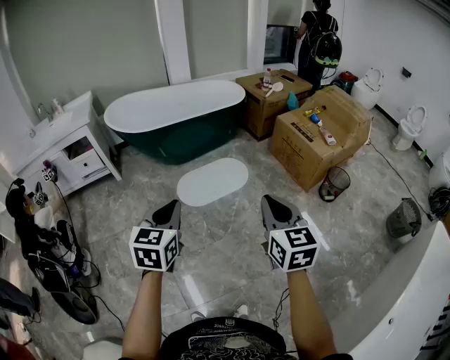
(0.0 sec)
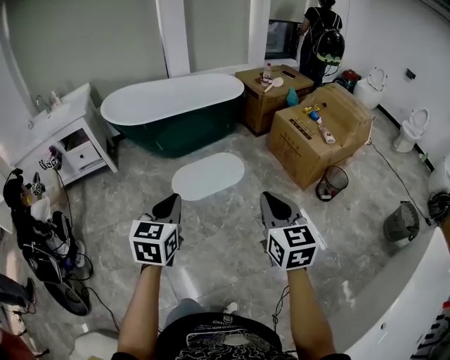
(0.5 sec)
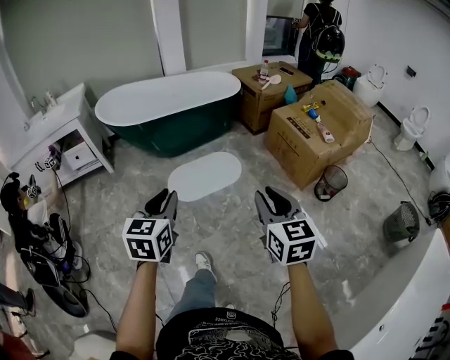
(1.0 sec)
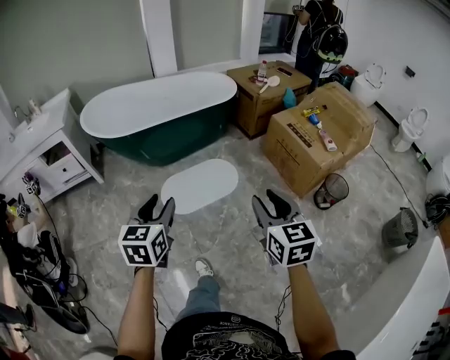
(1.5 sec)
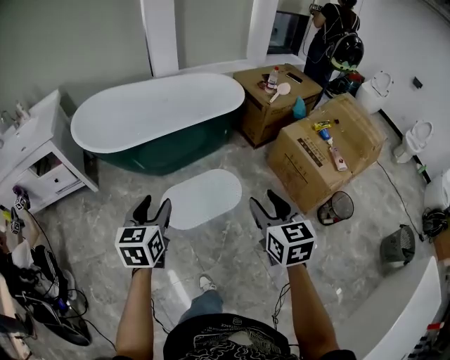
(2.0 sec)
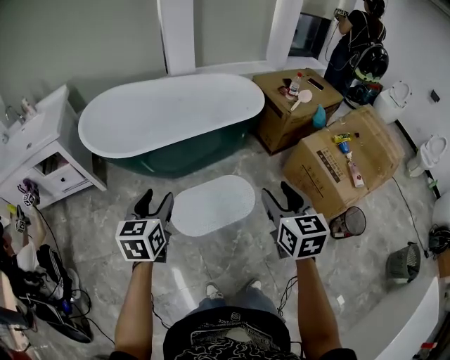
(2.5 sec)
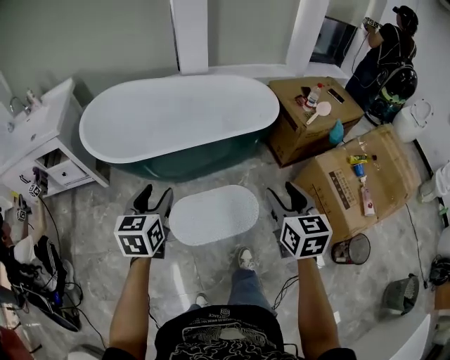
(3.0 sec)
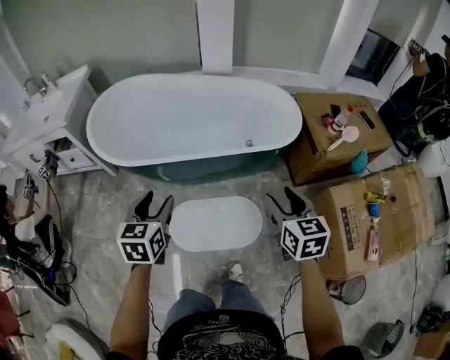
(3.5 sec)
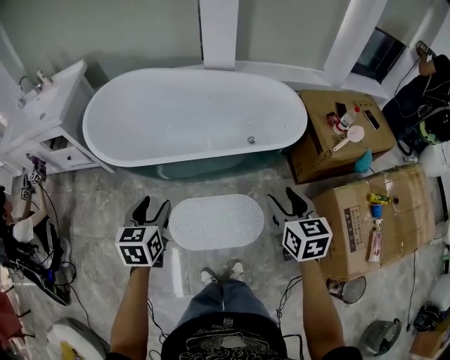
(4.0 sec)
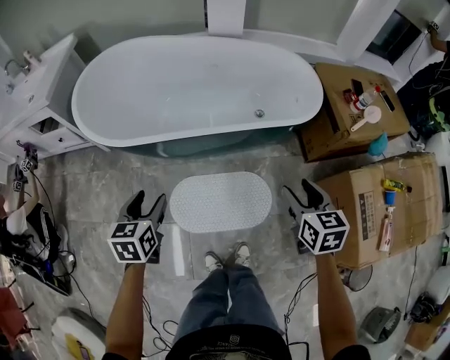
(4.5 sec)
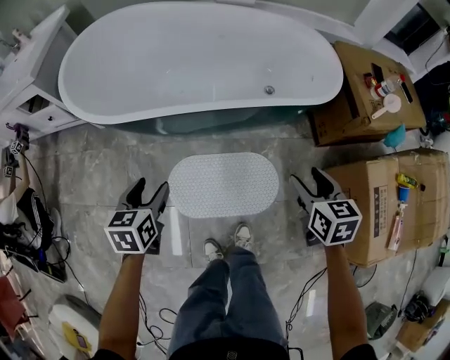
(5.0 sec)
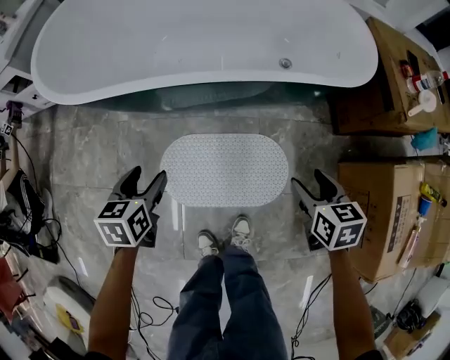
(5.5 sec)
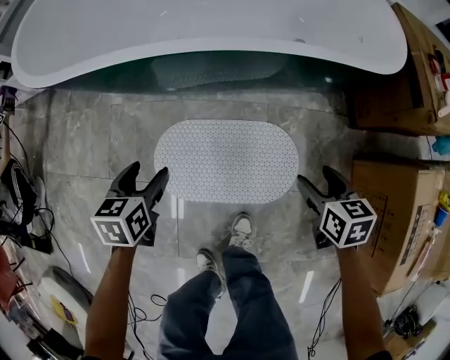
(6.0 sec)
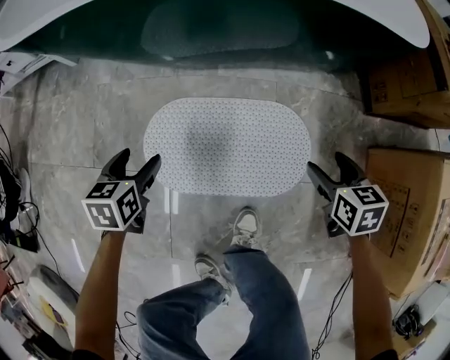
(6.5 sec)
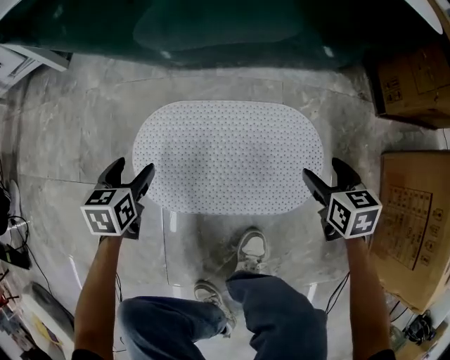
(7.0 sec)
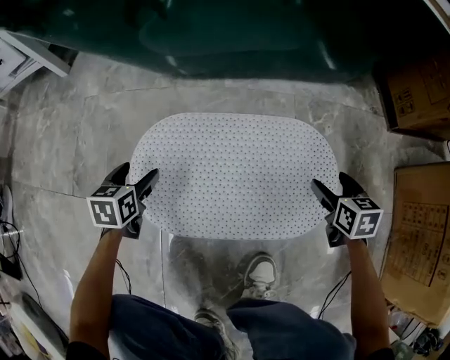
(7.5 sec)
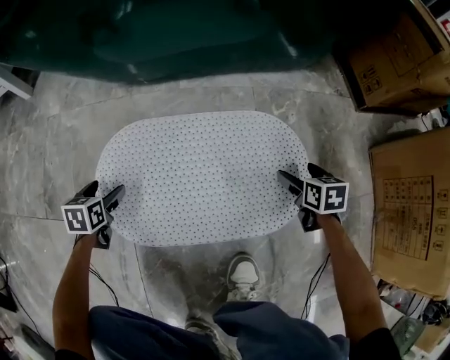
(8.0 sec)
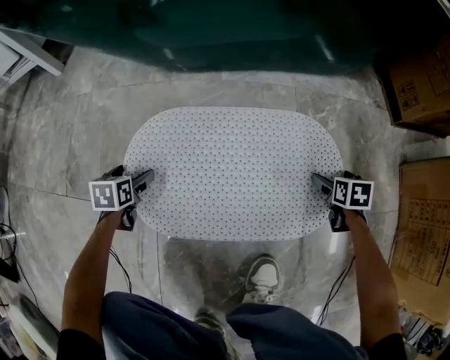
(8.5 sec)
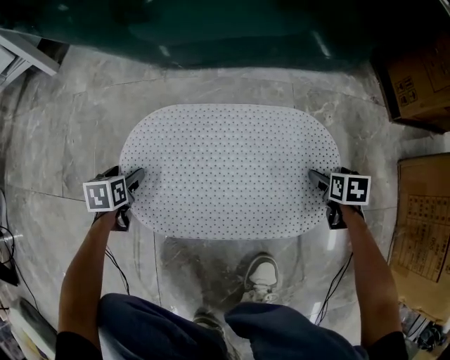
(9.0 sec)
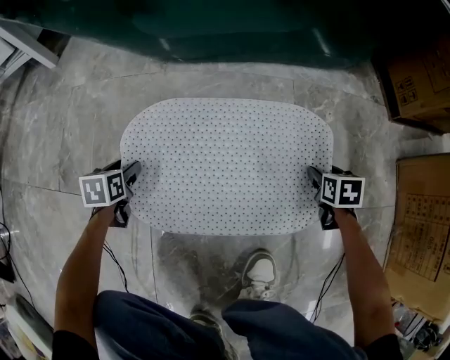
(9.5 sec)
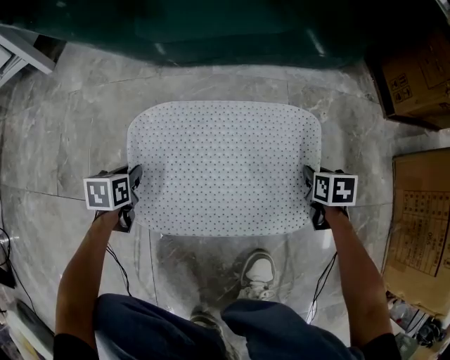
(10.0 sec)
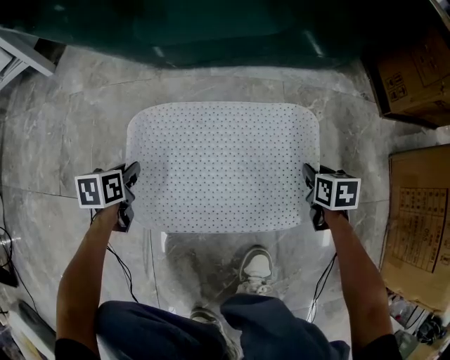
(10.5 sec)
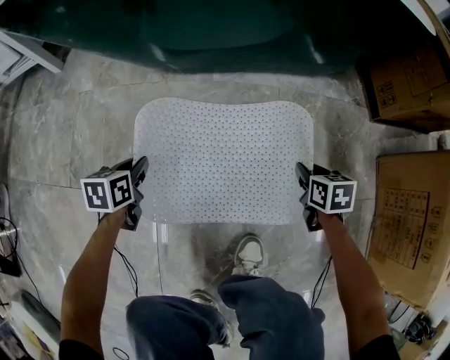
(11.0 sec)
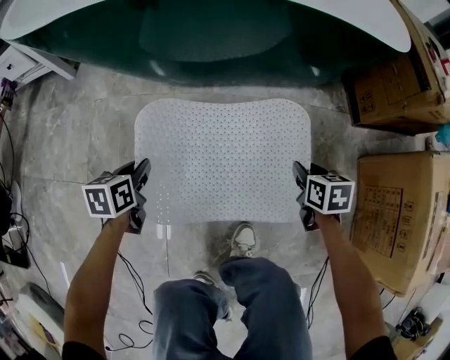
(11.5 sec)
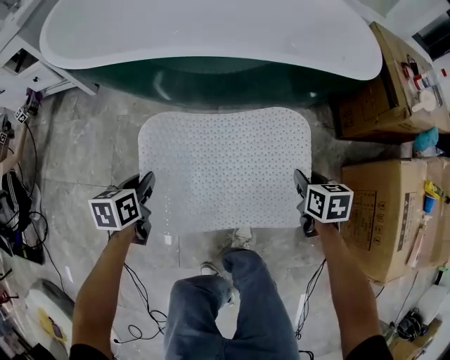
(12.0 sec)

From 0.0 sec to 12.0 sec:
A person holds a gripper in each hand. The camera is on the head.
From 0.0 sec to 2.0 sec: The two grippers go approximately 35 cm forward. The left gripper opens. Meanwhile the right gripper opens.
From 2.0 sec to 4.0 sec: Both grippers travel together forward, about 35 cm. The right gripper turns by some 20 degrees, while the left gripper changes its angle by some 20 degrees.
From 4.0 sec to 6.0 sec: Both grippers travel together downward, approximately 40 cm. The left gripper swivels approximately 20 degrees. The right gripper rotates some 30 degrees.
From 6.0 sec to 8.0 sec: The two grippers go approximately 40 cm downward.
From 8.0 sec to 10.0 sec: The right gripper closes up, while the left gripper closes up.
From 10.0 sec to 12.0 sec: Both grippers travel together upward, approximately 40 cm.

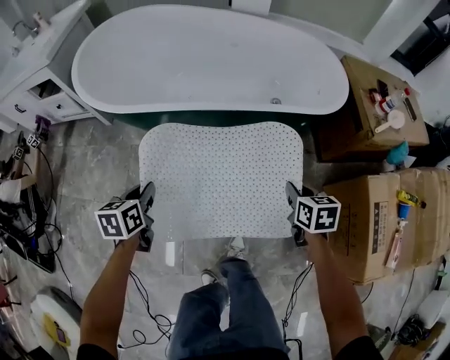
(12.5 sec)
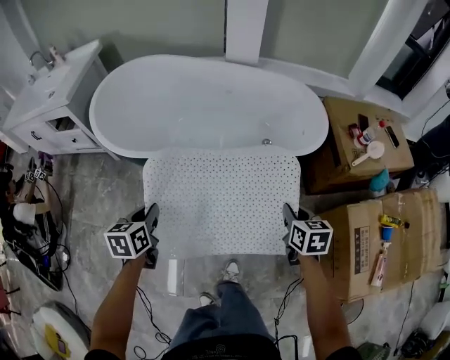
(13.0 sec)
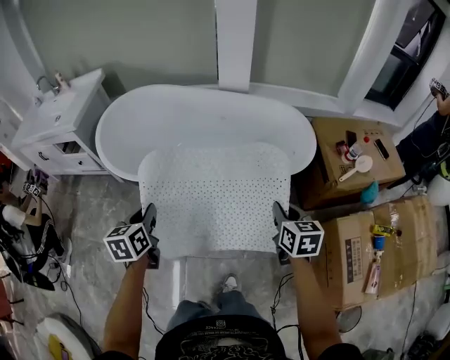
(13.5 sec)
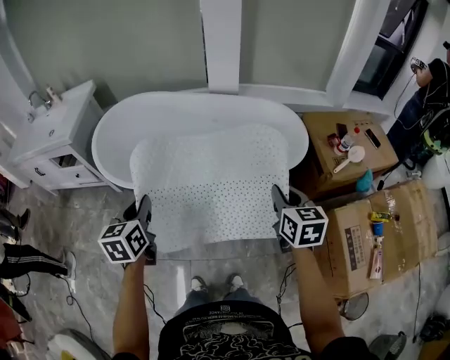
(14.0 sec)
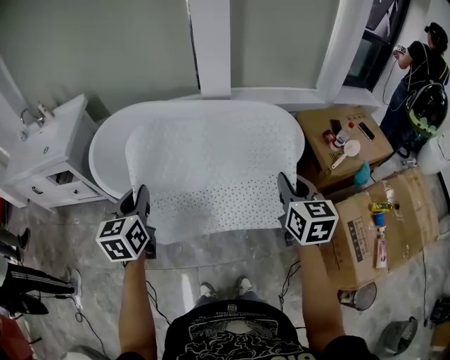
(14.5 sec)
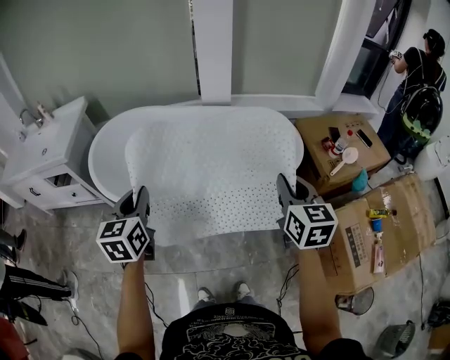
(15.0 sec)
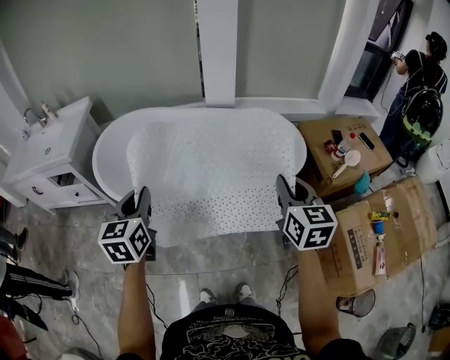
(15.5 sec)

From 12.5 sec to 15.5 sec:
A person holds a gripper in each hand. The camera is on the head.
From 12.5 sec to 14.0 sec: Both grippers travel together upward, roughly 30 cm. The left gripper rotates some 20 degrees, while the right gripper swivels roughly 20 degrees.
From 14.0 sec to 15.5 sec: The grippers both shift upward by roughly 10 cm.

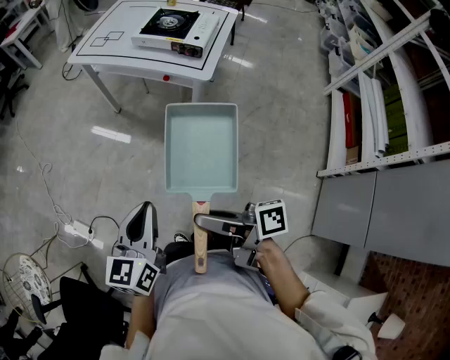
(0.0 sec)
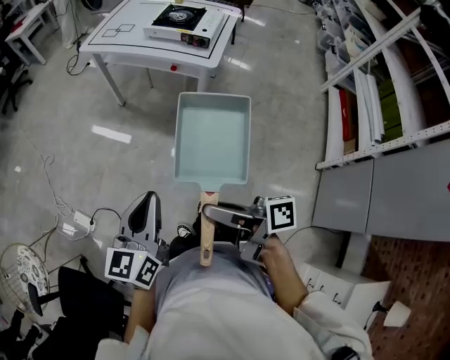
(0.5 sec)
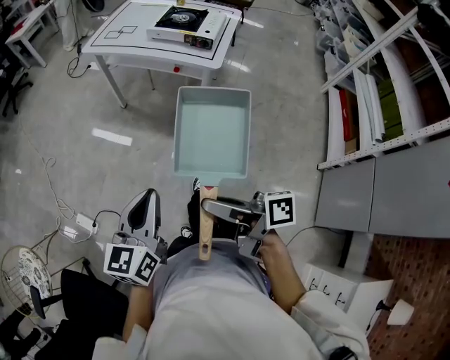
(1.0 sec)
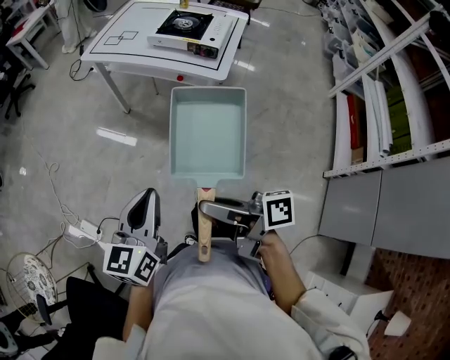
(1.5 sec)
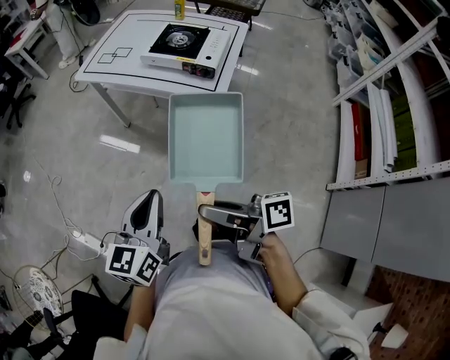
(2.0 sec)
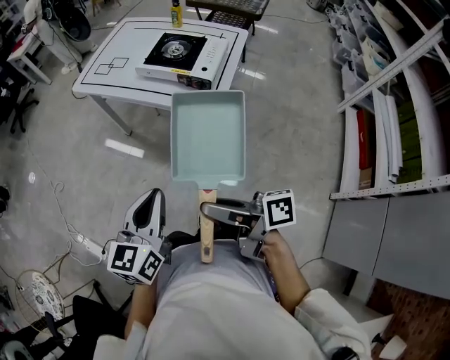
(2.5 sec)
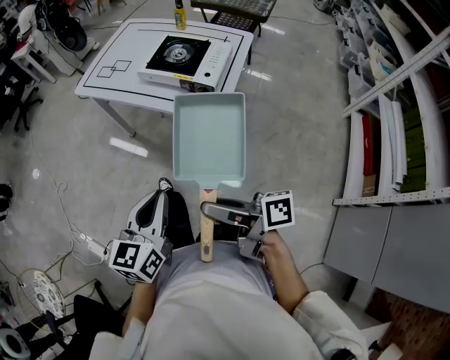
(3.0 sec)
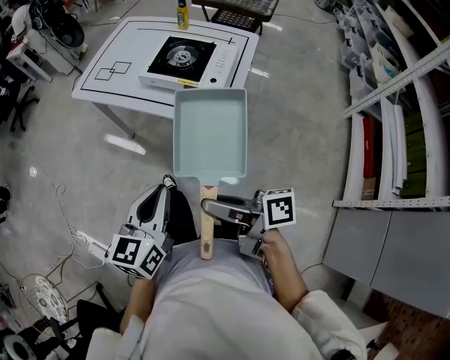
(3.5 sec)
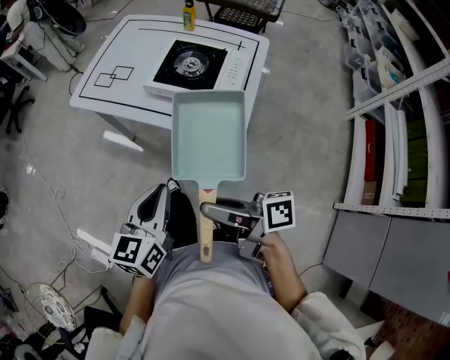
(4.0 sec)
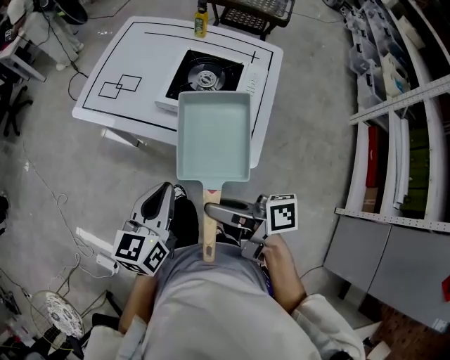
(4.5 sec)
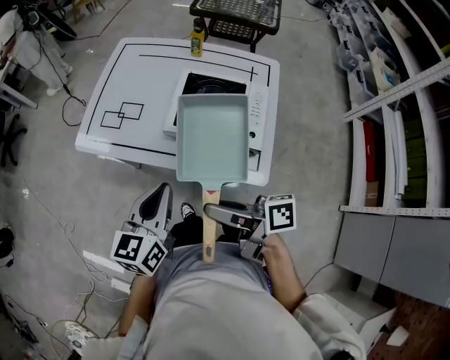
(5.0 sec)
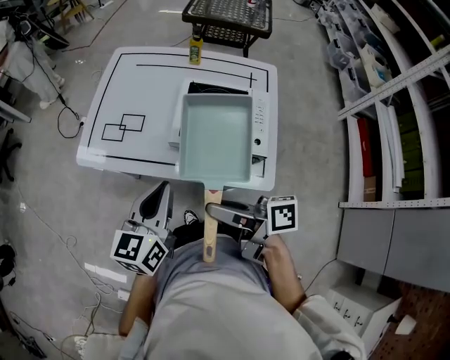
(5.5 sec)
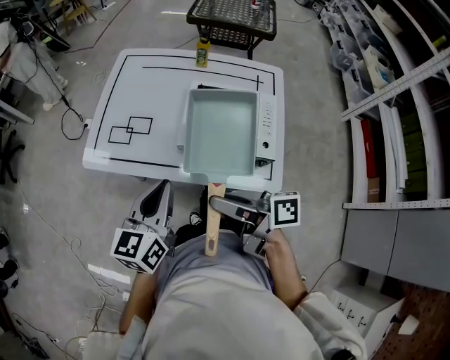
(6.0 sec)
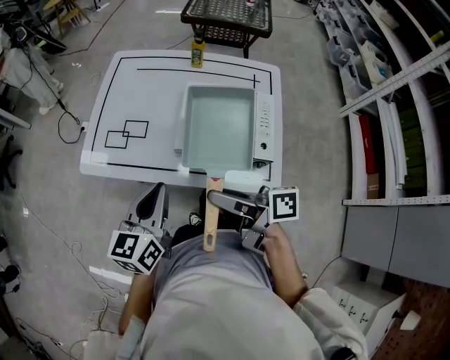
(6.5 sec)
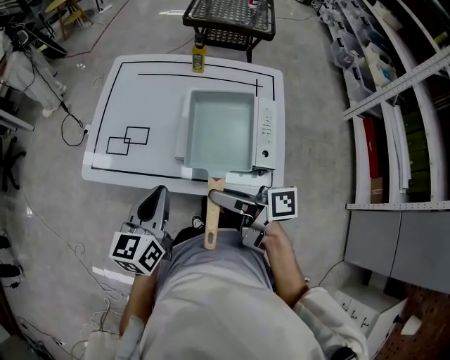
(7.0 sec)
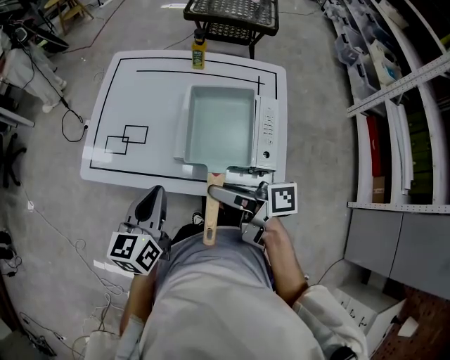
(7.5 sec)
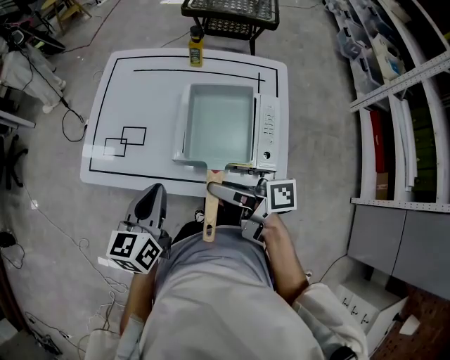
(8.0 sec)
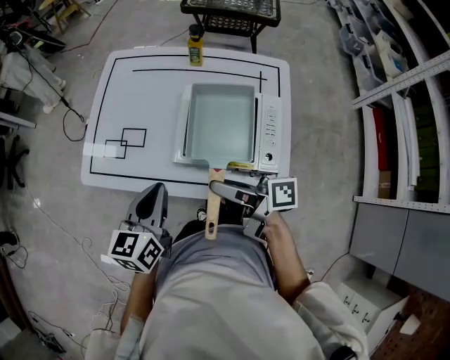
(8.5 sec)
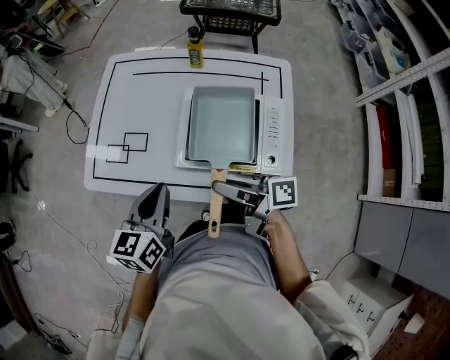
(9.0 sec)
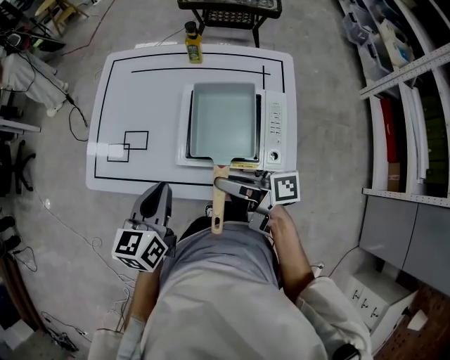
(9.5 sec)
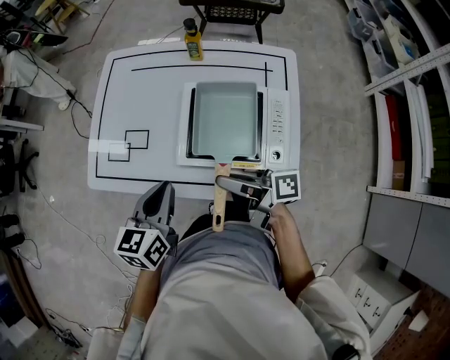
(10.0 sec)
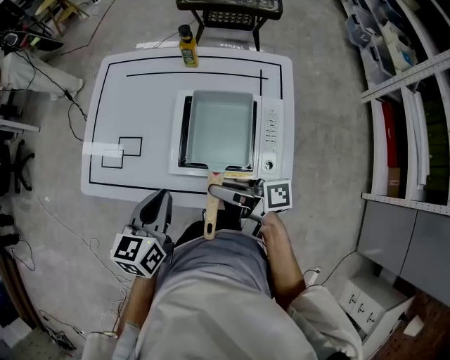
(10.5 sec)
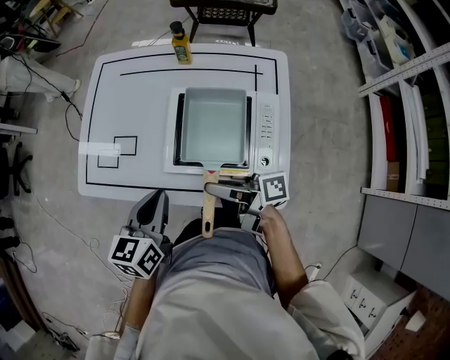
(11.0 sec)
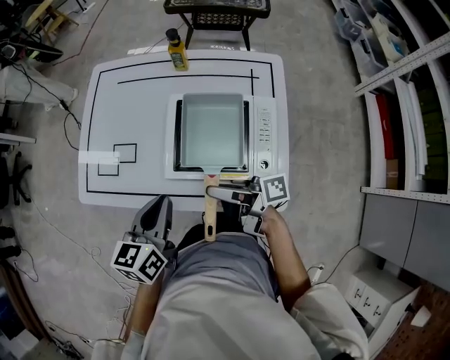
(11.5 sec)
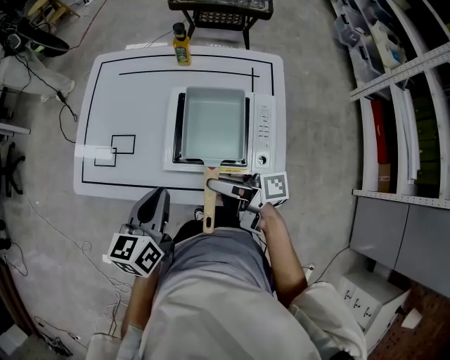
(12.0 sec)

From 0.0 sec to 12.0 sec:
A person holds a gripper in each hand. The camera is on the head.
From 0.0 sec to 2.0 sec: The grippers both shift forward by about 10 cm.
From 2.0 sec to 4.0 sec: The two grippers go roughly 20 cm forward.
From 4.0 sec to 6.0 sec: Both grippers travel together forward, roughly 25 cm.
From 6.0 sec to 8.0 sec: The right gripper heads forward and to the right, covering about 10 cm; the left gripper moves forward, approximately 5 cm.
From 8.0 sec to 10.0 sec: The right gripper changes place by about 5 cm.
From 10.0 sec to 12.0 sec: The grippers make only small movements.
